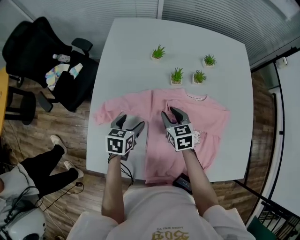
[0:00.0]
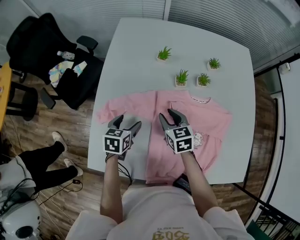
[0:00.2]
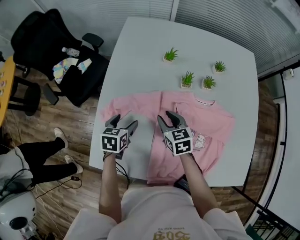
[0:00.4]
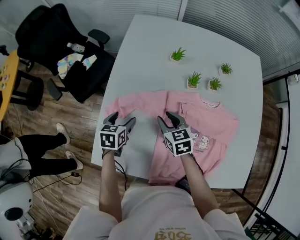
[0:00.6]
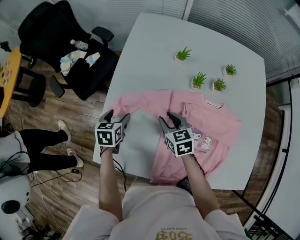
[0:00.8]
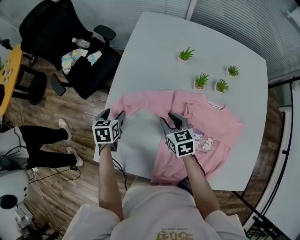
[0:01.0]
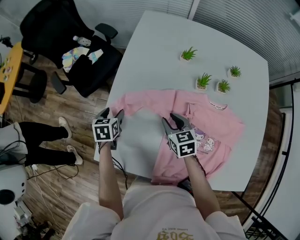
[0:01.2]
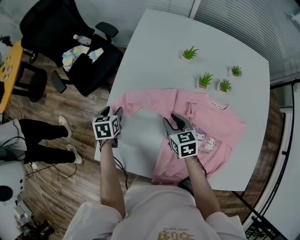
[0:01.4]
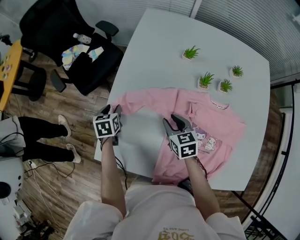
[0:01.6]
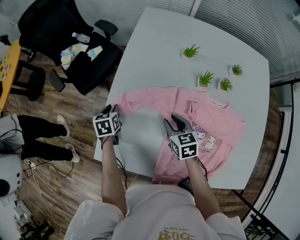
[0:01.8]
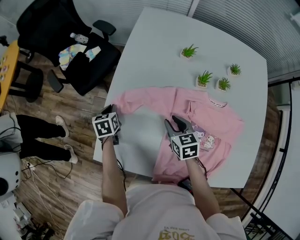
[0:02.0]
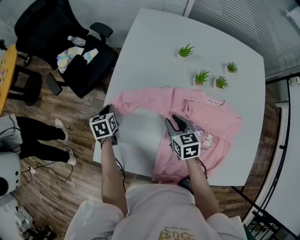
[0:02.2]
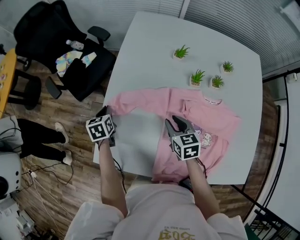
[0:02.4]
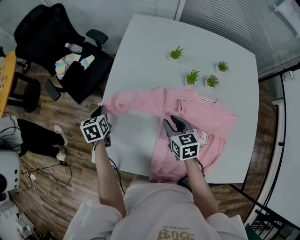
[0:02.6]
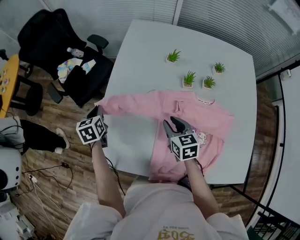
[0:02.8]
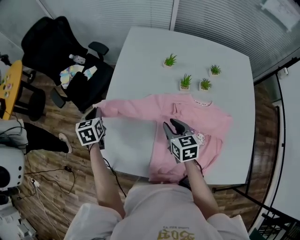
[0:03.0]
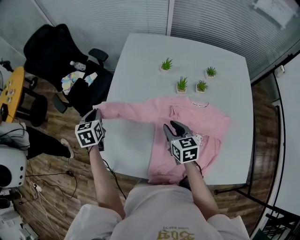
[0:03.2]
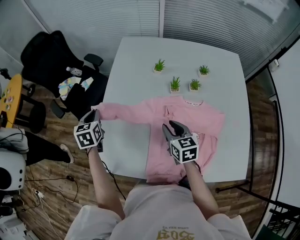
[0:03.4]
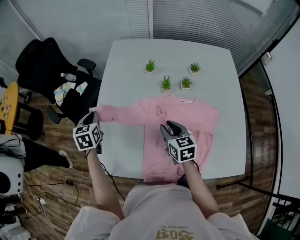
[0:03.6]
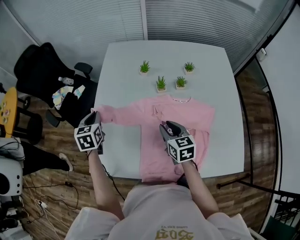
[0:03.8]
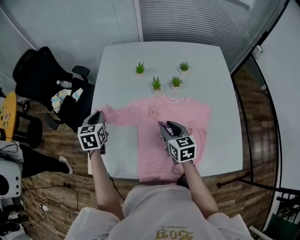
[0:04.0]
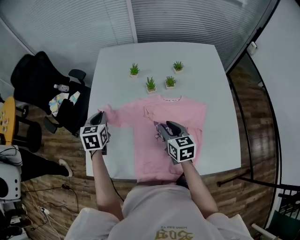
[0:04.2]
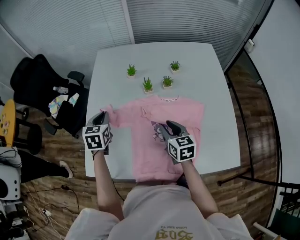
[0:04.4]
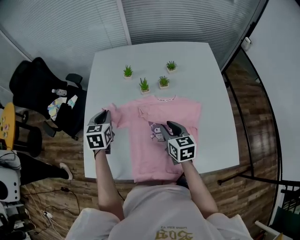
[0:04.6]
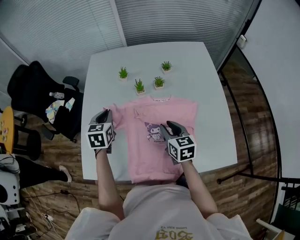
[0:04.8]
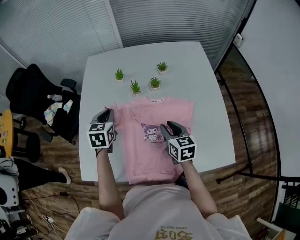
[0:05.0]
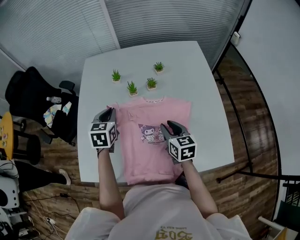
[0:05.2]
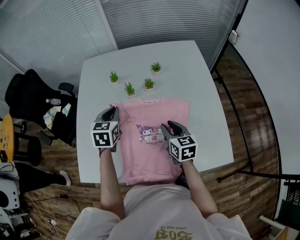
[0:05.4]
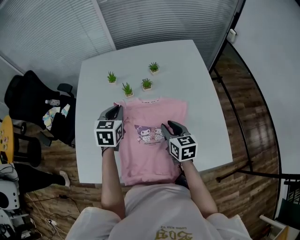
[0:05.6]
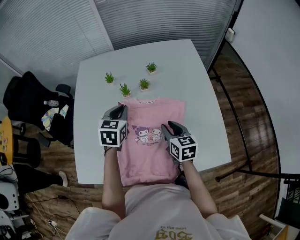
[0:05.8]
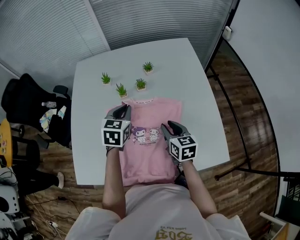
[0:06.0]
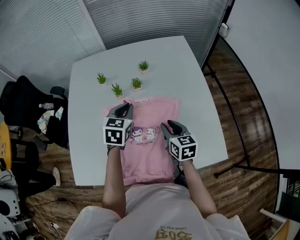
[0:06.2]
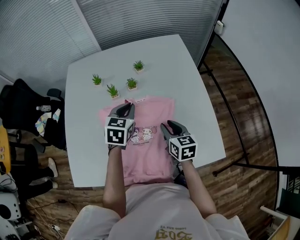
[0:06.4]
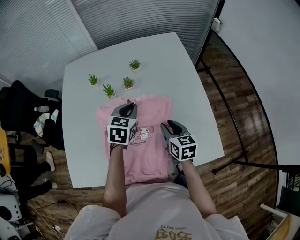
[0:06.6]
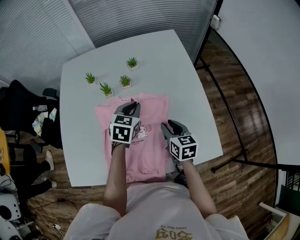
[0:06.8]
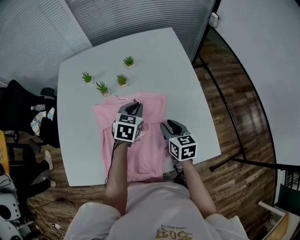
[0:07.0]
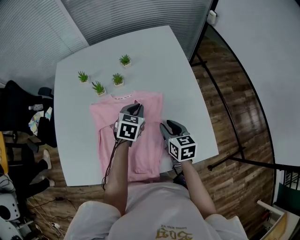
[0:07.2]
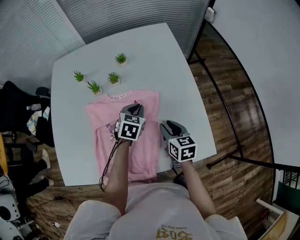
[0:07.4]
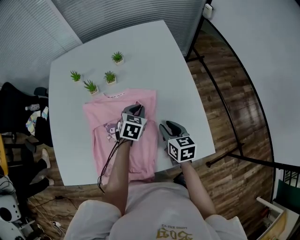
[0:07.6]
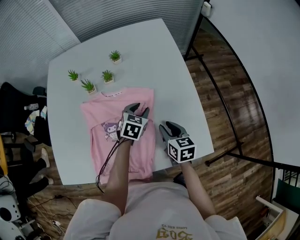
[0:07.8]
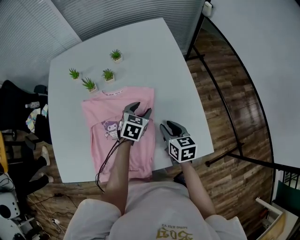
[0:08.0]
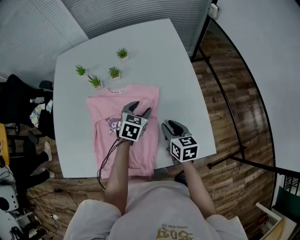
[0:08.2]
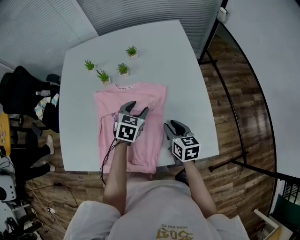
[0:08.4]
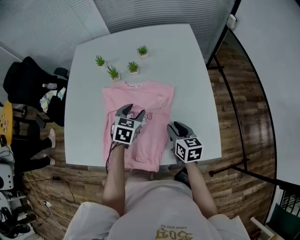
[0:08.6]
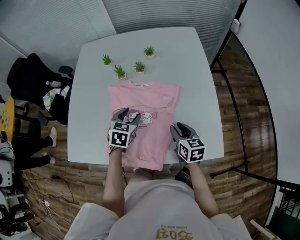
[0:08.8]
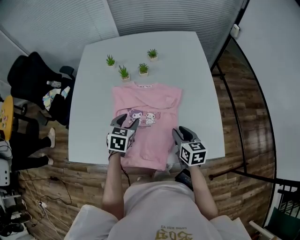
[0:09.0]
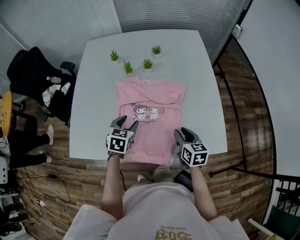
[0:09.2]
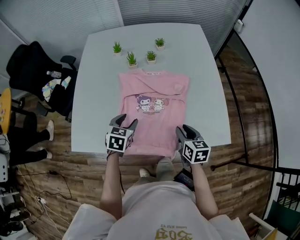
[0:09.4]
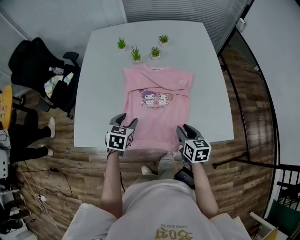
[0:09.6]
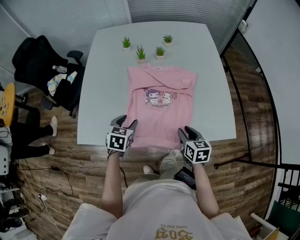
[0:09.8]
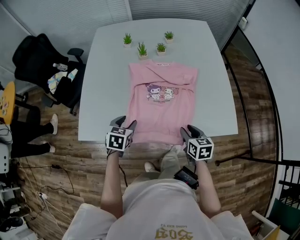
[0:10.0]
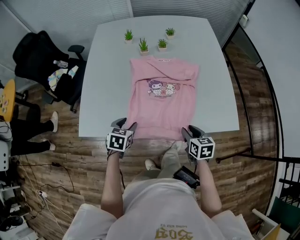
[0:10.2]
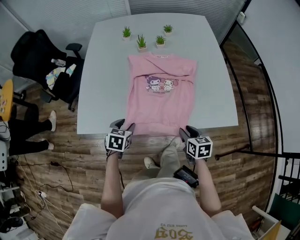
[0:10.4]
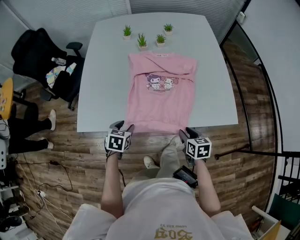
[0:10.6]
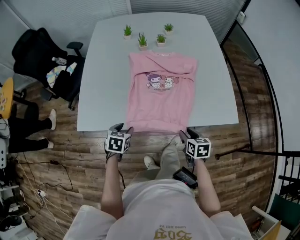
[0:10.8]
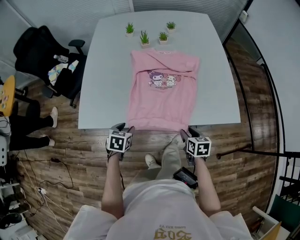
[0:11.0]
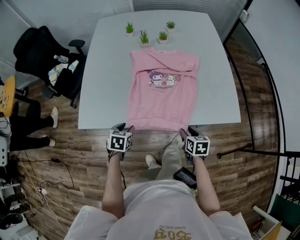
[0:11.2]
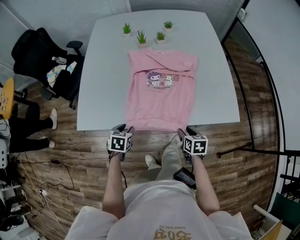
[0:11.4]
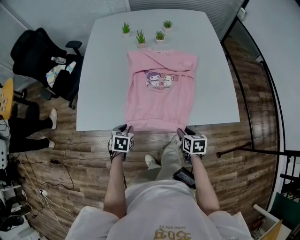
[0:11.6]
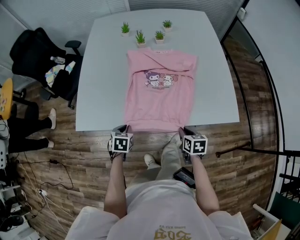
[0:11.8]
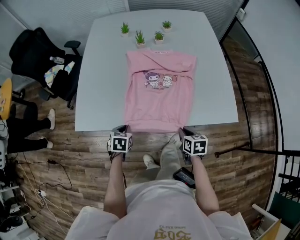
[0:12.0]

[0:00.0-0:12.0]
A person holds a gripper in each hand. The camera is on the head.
0:00.0 to 0:01.6: The left gripper shifts by about 20 cm, changes its angle by about 30 degrees, and closes. The right gripper changes place by about 10 cm.
0:01.6 to 0:03.0: The left gripper goes approximately 10 cm upward, and closes its fingers; the right gripper goes about 5 cm upward.
0:03.0 to 0:04.4: The right gripper moves to the right and backward, about 15 cm. Meanwhile the left gripper travels to the right by some 20 cm, and swivels roughly 20 degrees.
0:04.4 to 0:06.0: The left gripper goes about 25 cm to the right, and swivels roughly 20 degrees. The right gripper travels to the right by roughly 15 cm.
0:06.0 to 0:07.6: The left gripper heads to the right and downward, covering roughly 25 cm. The right gripper travels to the right and downward by roughly 15 cm.
0:07.6 to 0:09.0: The right gripper moves backward, approximately 5 cm; the left gripper goes roughly 20 cm to the left and backward, and opens.
0:09.0 to 0:10.4: Both grippers travel together backward, to the left and downward, roughly 20 cm.
0:10.4 to 0:12.0: The left gripper travels downward by approximately 5 cm, and closes up. Meanwhile the right gripper closes its fingers.

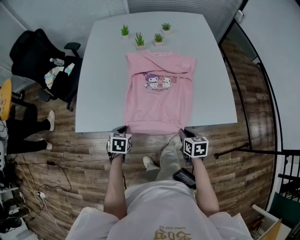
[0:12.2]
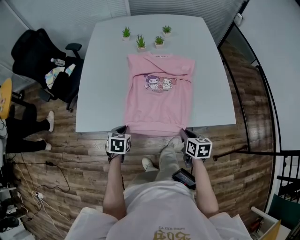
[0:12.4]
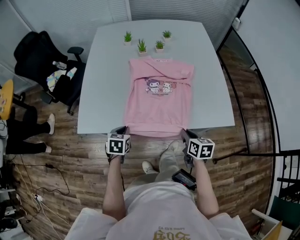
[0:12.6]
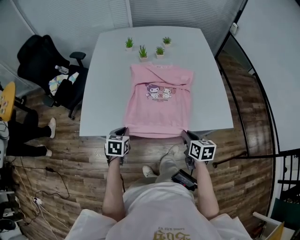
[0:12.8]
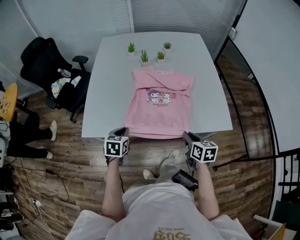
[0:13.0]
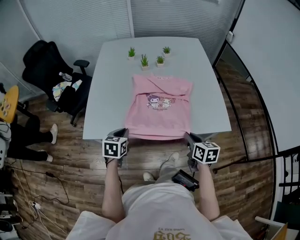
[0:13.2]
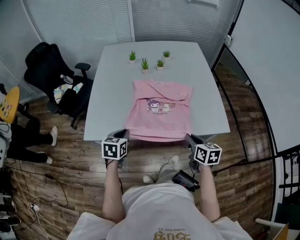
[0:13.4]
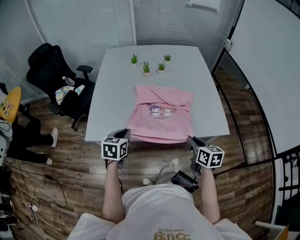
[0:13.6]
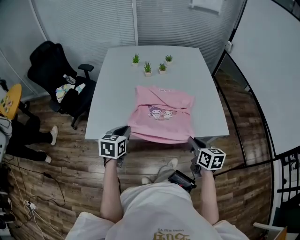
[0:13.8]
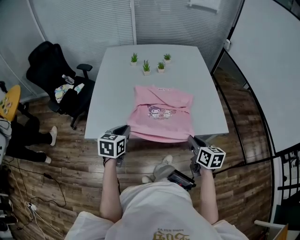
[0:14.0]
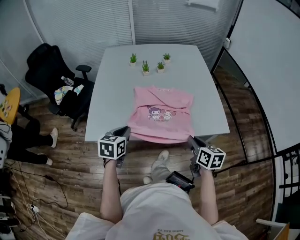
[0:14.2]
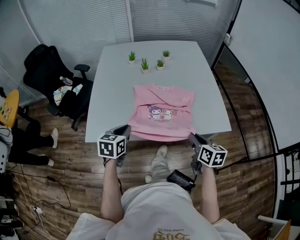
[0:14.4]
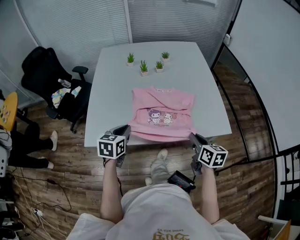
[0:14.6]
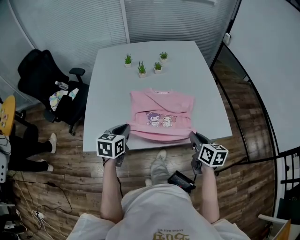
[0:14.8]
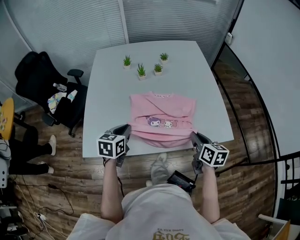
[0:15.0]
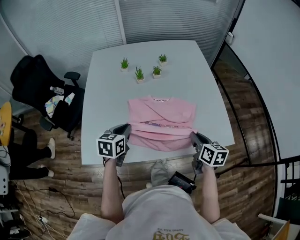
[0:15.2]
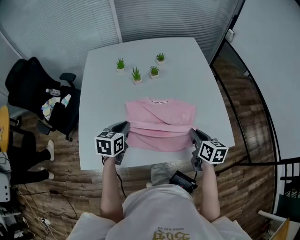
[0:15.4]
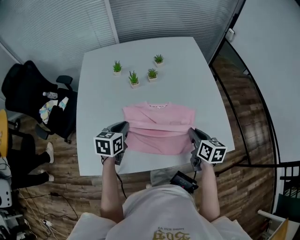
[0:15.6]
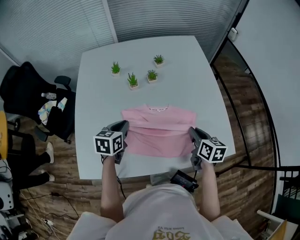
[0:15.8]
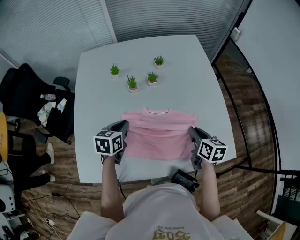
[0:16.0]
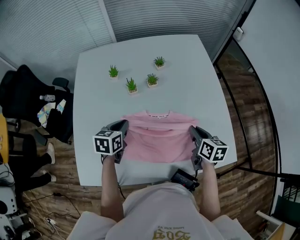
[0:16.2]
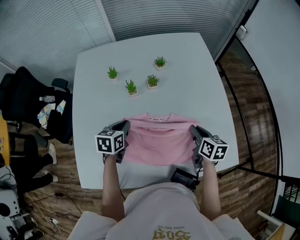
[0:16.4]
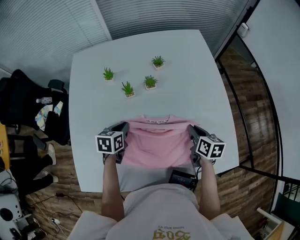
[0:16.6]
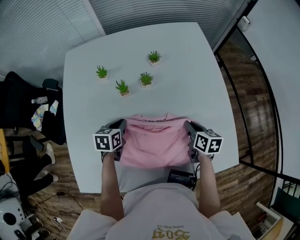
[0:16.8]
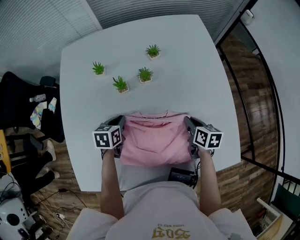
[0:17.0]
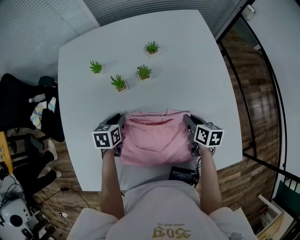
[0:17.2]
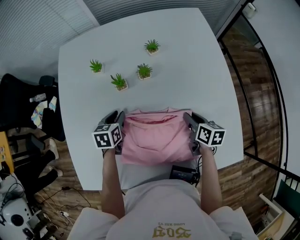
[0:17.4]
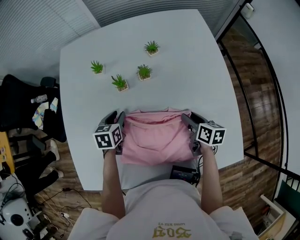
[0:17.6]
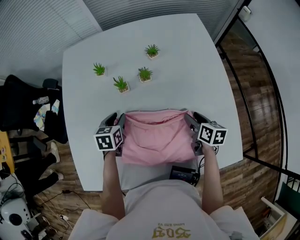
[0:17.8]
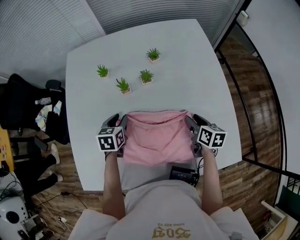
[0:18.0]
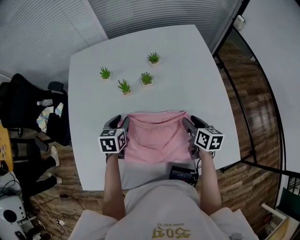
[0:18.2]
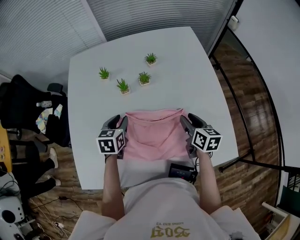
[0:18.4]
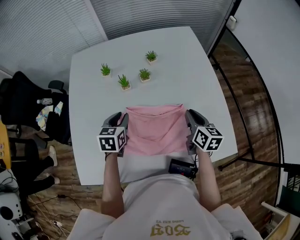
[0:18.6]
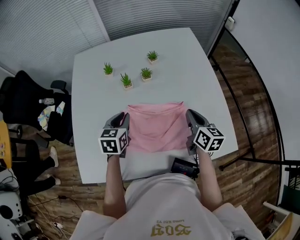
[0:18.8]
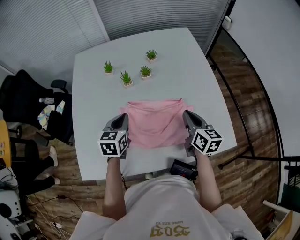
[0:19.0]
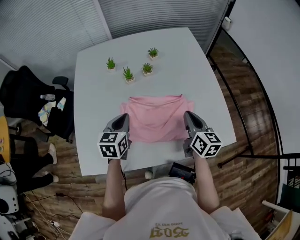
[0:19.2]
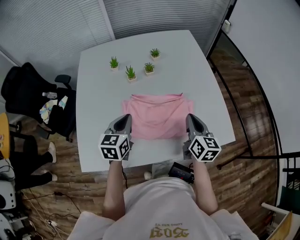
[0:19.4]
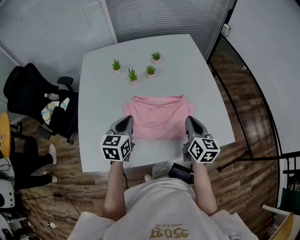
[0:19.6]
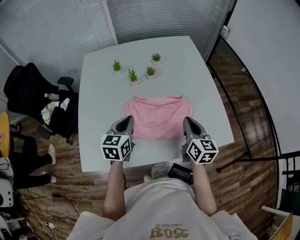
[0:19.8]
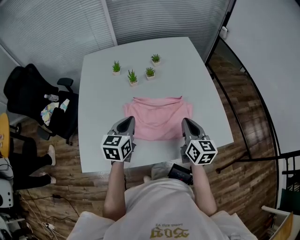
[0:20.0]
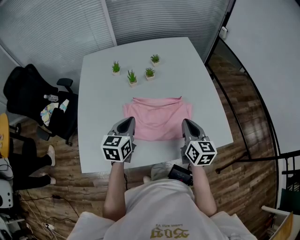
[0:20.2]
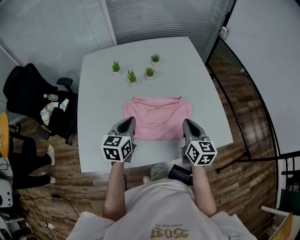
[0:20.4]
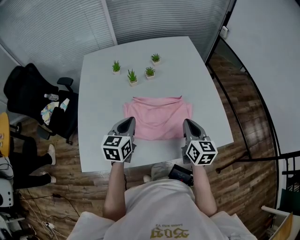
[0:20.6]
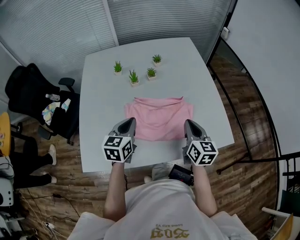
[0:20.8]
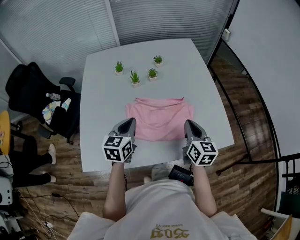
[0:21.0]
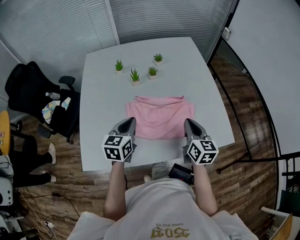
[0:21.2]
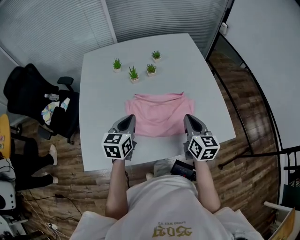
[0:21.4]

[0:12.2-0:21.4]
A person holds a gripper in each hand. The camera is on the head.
0:12.2 to 0:13.8: The grippers both shift upward by some 20 cm. The left gripper turns by about 20 degrees.
0:13.8 to 0:15.2: Both grippers travel together forward, some 15 cm.
0:15.2 to 0:16.8: The grippers both shift forward and downward by some 25 cm.
0:16.8 to 0:18.4: The two grippers go approximately 5 cm upward. The right gripper opens up.
0:18.4 to 0:19.8: Both grippers move backward and upward, approximately 20 cm. The left gripper closes up, while the right gripper closes its fingers.
0:19.8 to 0:21.4: The two grippers keep their place.

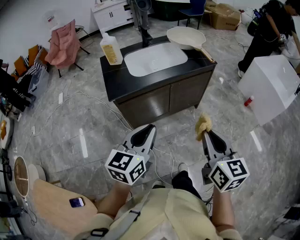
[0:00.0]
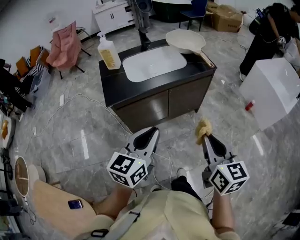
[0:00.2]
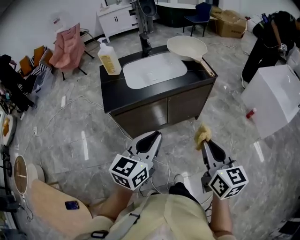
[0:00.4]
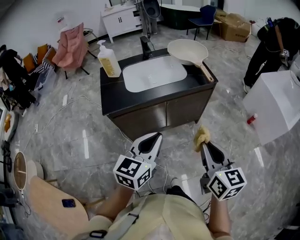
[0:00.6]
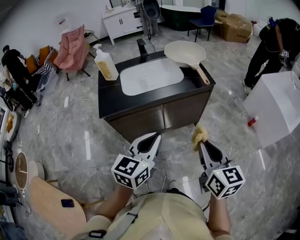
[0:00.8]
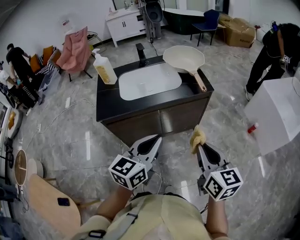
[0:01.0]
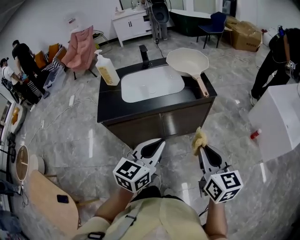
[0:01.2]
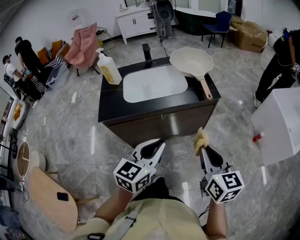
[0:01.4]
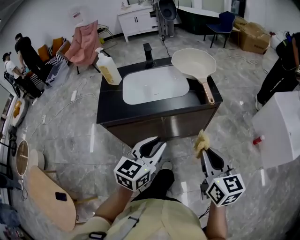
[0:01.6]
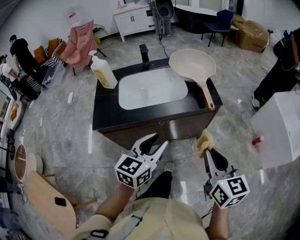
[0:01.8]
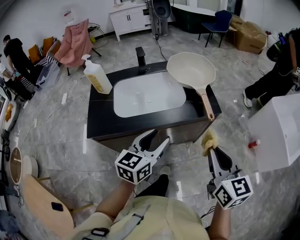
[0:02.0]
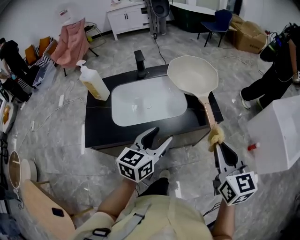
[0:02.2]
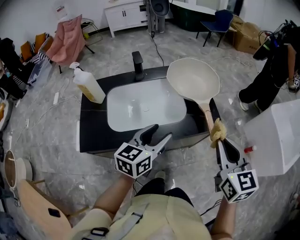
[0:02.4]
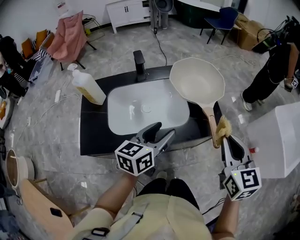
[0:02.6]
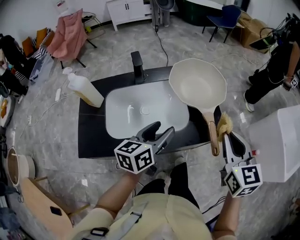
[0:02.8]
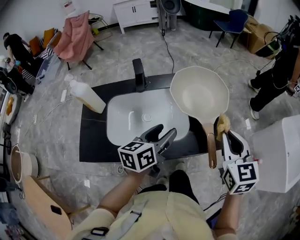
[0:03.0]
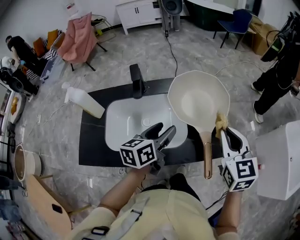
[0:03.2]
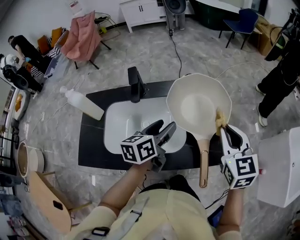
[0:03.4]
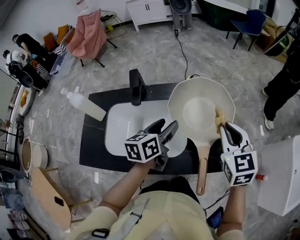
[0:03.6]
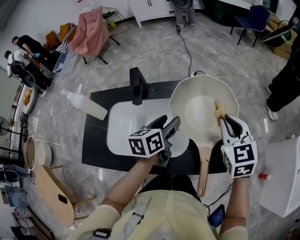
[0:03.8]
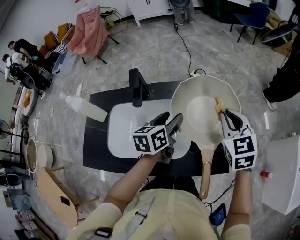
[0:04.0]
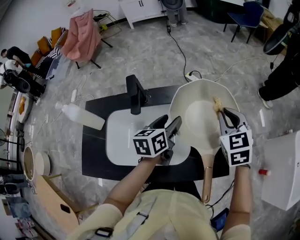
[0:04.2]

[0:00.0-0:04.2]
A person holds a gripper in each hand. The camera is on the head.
0:00.0 to 0:01.4: The left gripper heads to the right and forward, covering about 25 cm, while the right gripper moves forward and to the right, approximately 25 cm.
0:01.4 to 0:02.8: The two grippers go approximately 35 cm forward. The left gripper turns by about 30 degrees, and opens its fingers.
0:02.8 to 0:04.2: Both grippers move forward, about 25 cm. The right gripper rotates roughly 20 degrees.
